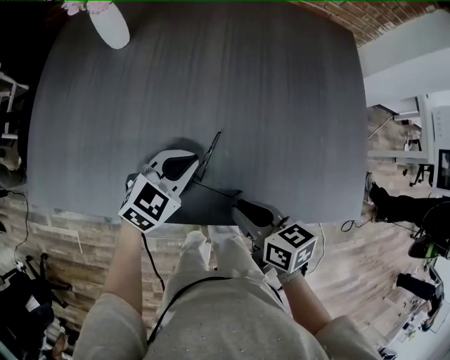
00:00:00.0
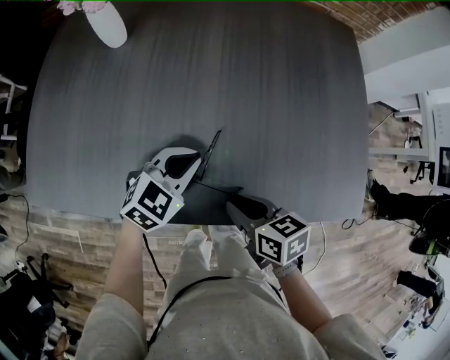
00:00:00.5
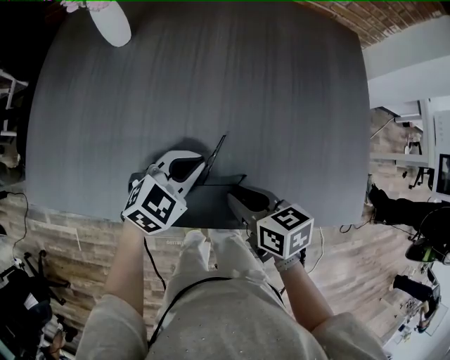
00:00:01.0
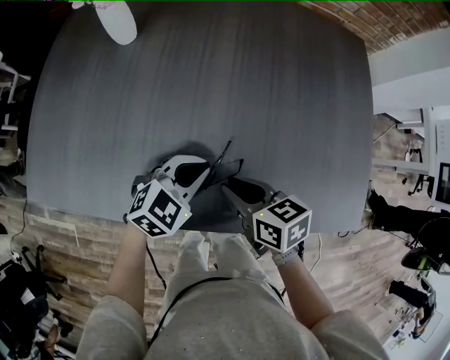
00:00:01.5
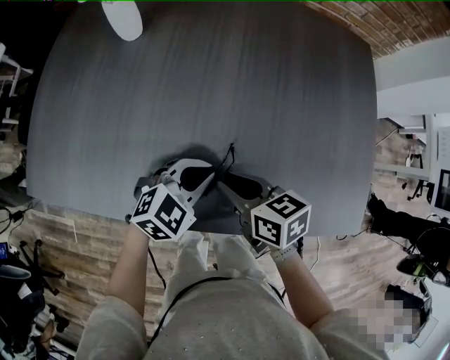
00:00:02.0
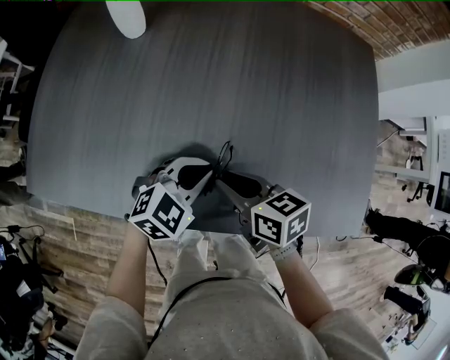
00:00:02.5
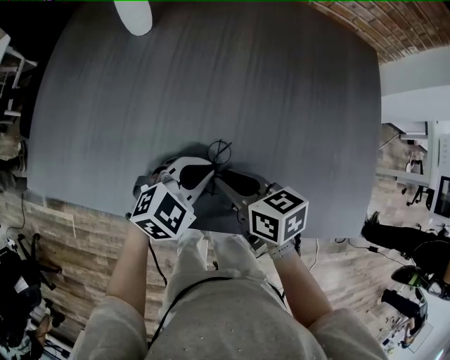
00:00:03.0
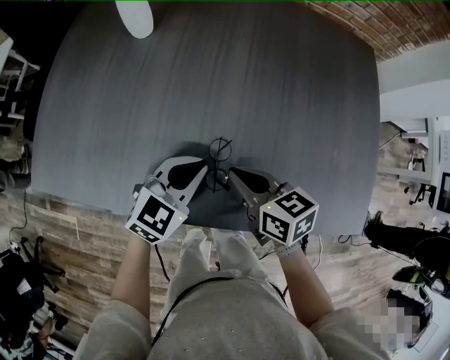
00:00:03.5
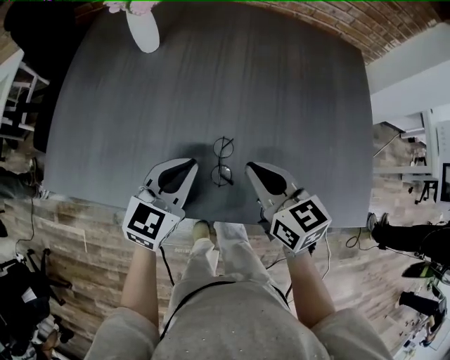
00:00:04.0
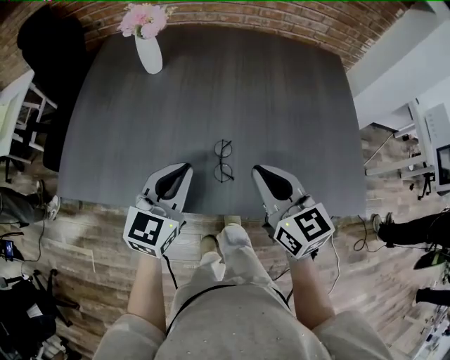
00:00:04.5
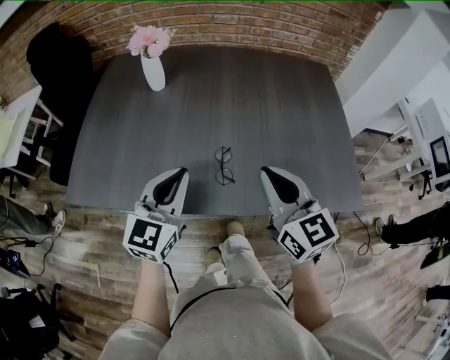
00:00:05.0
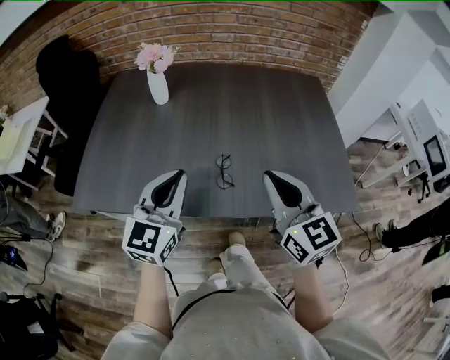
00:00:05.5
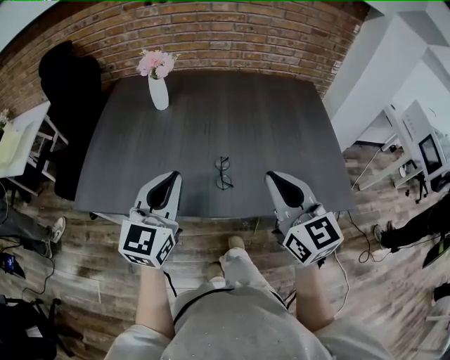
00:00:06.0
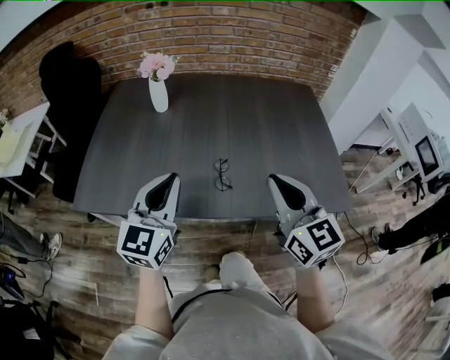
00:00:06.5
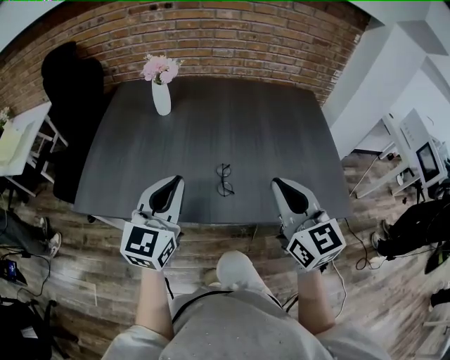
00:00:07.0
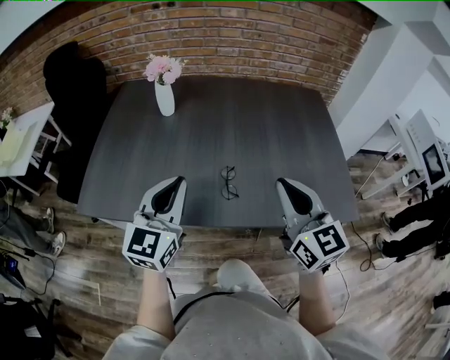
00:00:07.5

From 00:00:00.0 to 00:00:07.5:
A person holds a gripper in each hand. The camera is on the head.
From 00:00:00.0 to 00:00:02.0: The right gripper heads forward and to the left, covering roughly 10 cm.
From 00:00:02.0 to 00:00:04.0: The right gripper moves upward, approximately 10 cm, swivels some 30 degrees, and closes, while the left gripper travels upward and to the left by some 10 cm, and changes its angle by approximately 30 degrees.
From 00:00:04.0 to 00:00:05.5: Both grippers travel together upward and backward, about 20 cm. The right gripper changes its angle by approximately 30 degrees.
From 00:00:05.5 to 00:00:07.5: The grippers move only a little.

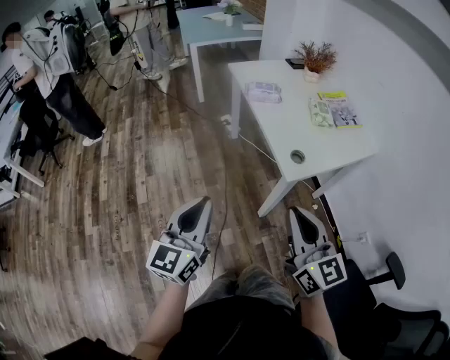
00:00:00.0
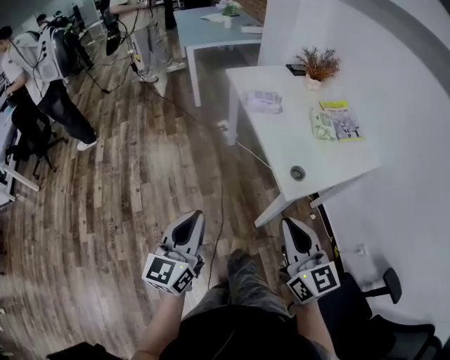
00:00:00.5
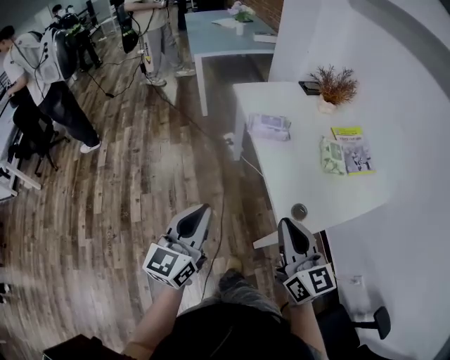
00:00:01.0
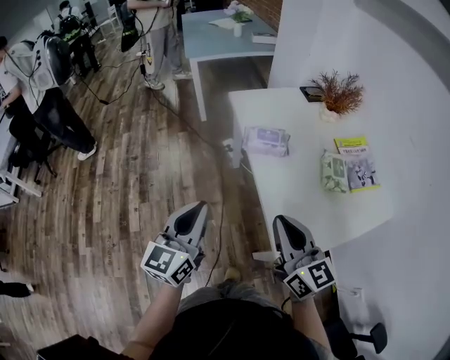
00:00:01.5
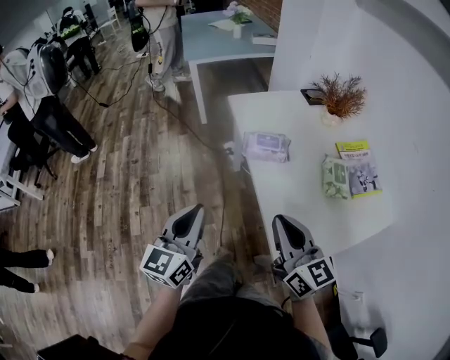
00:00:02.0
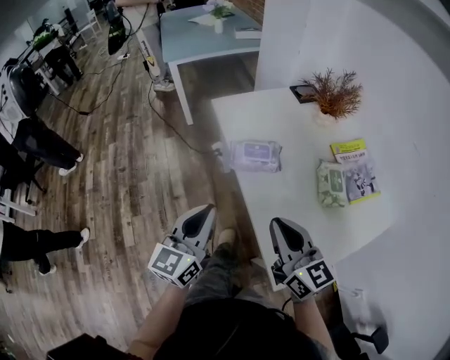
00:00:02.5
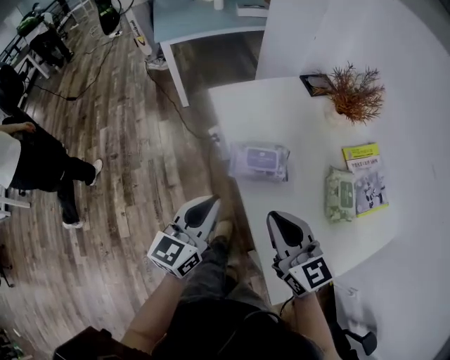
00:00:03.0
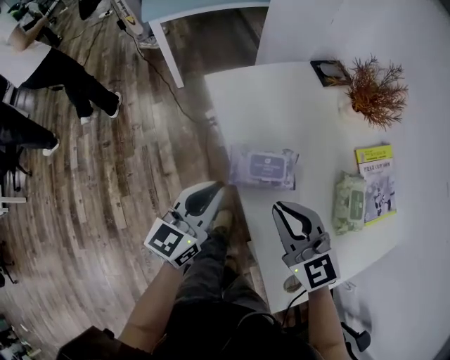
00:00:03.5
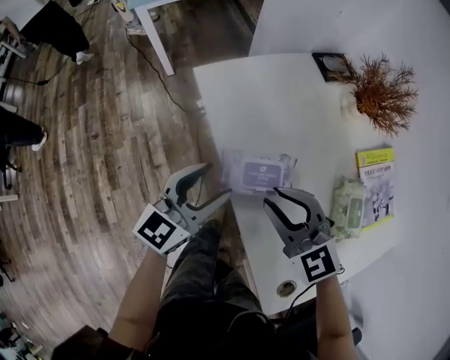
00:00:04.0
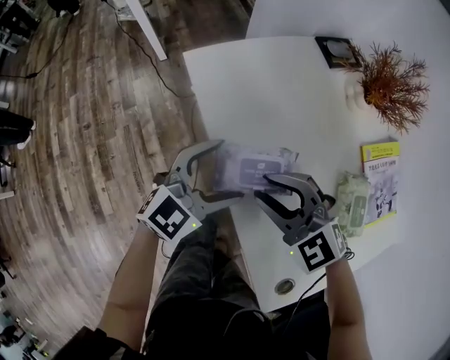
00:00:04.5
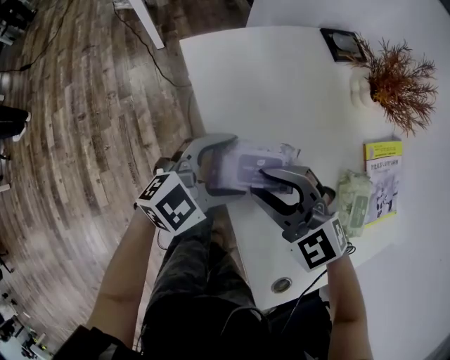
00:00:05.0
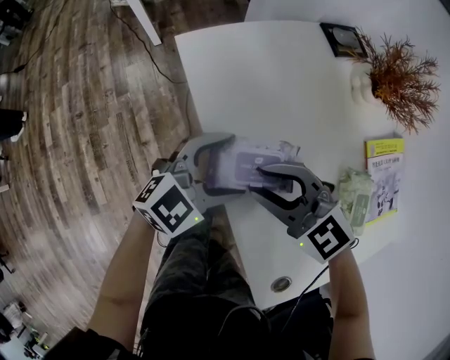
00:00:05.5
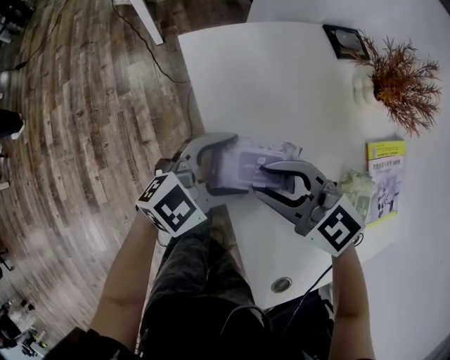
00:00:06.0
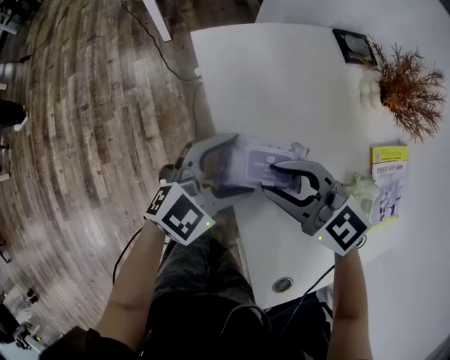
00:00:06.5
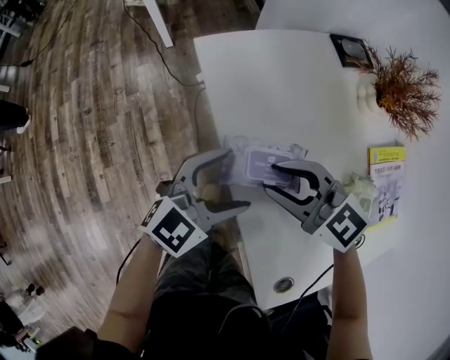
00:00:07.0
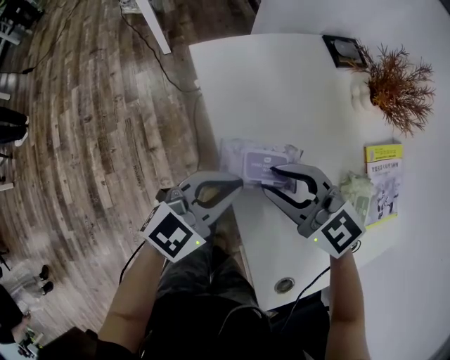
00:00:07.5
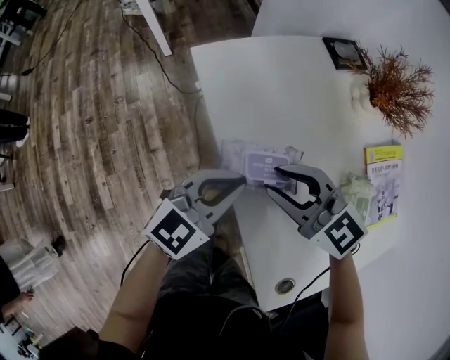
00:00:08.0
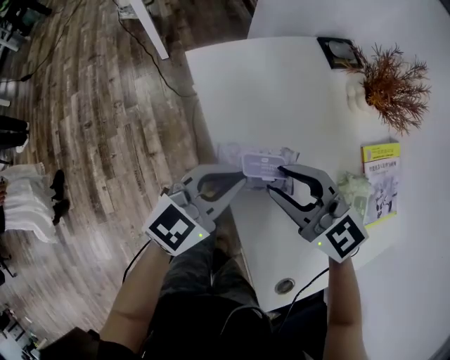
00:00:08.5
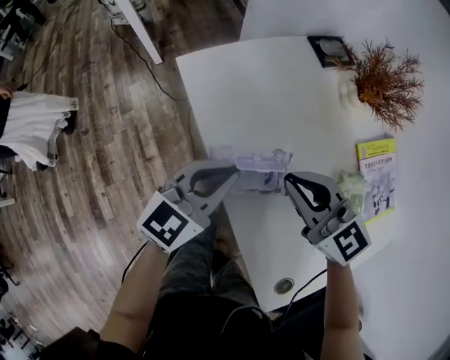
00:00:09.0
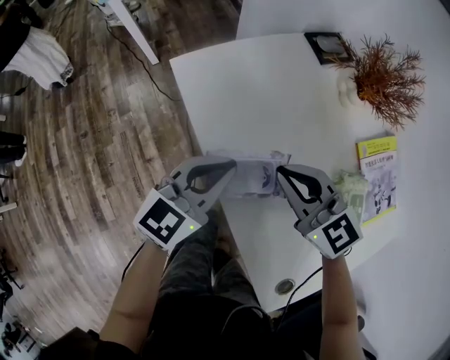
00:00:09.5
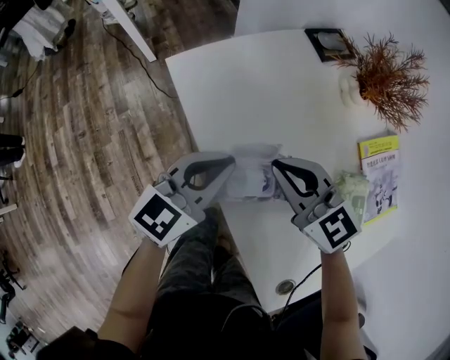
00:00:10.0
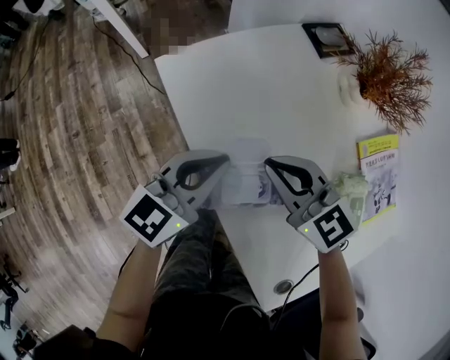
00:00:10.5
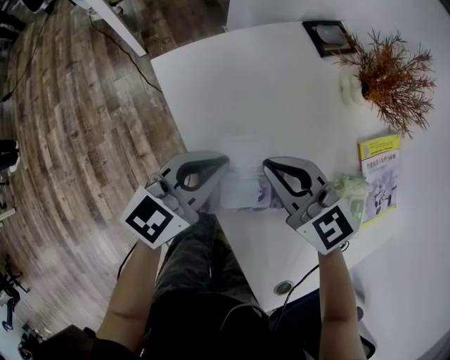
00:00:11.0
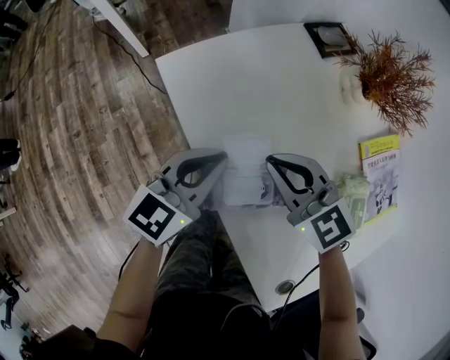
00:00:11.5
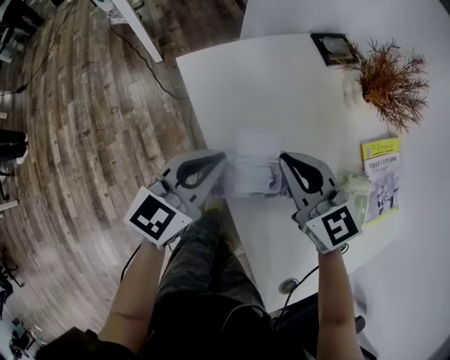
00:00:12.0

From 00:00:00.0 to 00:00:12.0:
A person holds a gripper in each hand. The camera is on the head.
From 00:00:00.0 to 00:00:02.0: Both grippers travel together forward, roughly 30 cm.
From 00:00:02.0 to 00:00:04.0: The right gripper travels forward and downward by roughly 30 cm, and rotates about 50 degrees, while the left gripper heads forward, covering roughly 30 cm, turns by approximately 30 degrees, and opens up.
From 00:00:04.0 to 00:00:06.0: The left gripper shifts by about 10 cm, changes its angle by roughly 30 degrees, and opens up, while the right gripper swivels about 20 degrees.
From 00:00:06.0 to 00:00:08.0: The left gripper ends up about 5 cm from where it was, and closes.
From 00:00:08.0 to 00:00:10.0: The two grippers go roughly 5 cm forward. The right gripper closes its fingers.
From 00:00:10.0 to 00:00:12.0: The grippers make only small movements.

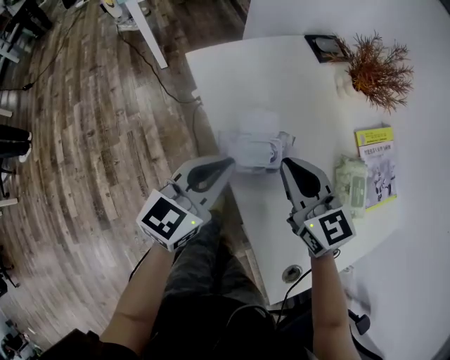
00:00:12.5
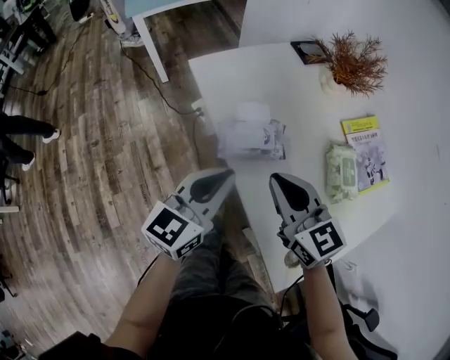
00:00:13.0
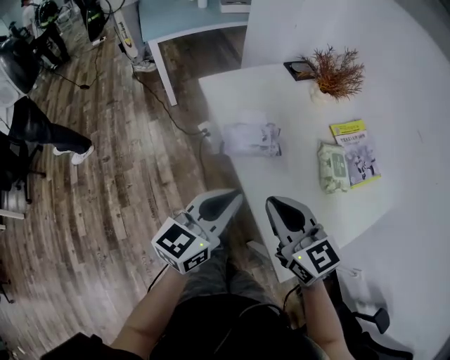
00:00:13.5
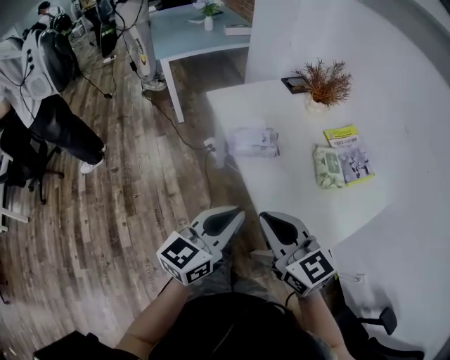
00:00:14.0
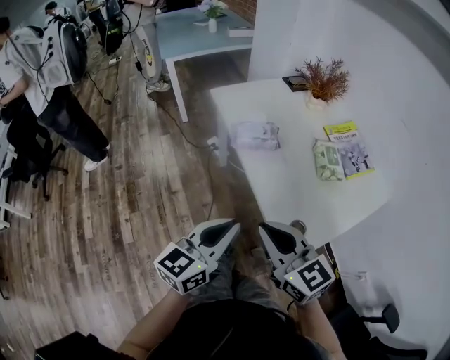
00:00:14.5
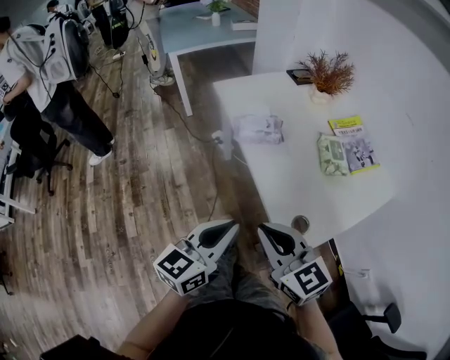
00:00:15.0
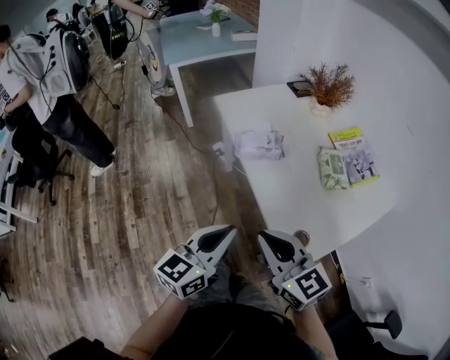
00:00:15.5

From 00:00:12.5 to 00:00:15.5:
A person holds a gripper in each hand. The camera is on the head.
From 00:00:12.5 to 00:00:14.0: The grippers both shift backward by some 25 cm.

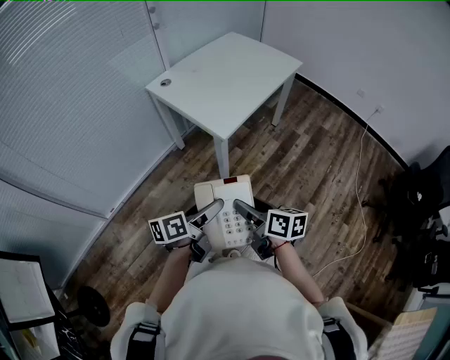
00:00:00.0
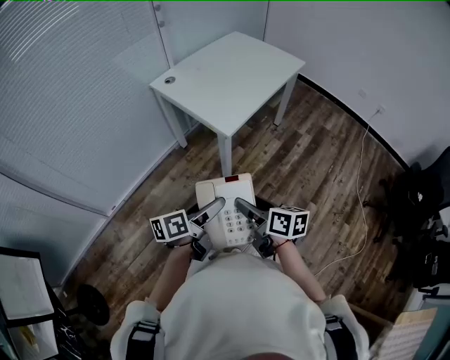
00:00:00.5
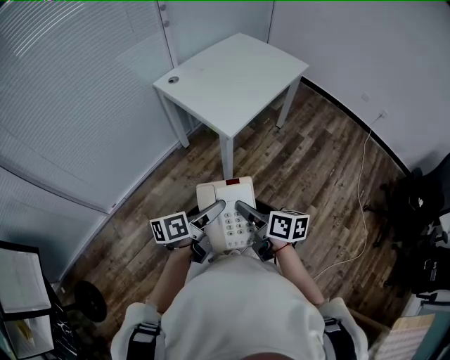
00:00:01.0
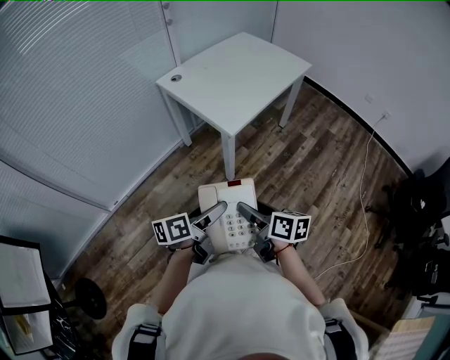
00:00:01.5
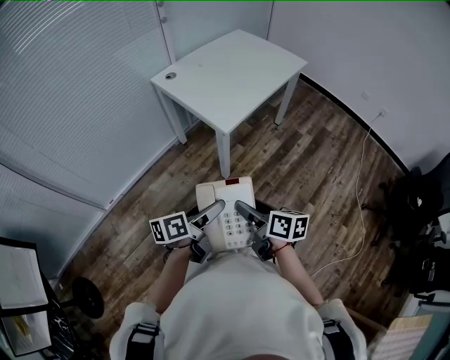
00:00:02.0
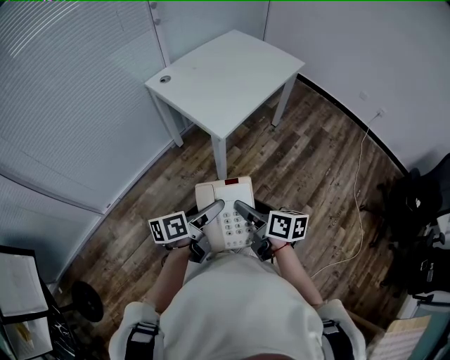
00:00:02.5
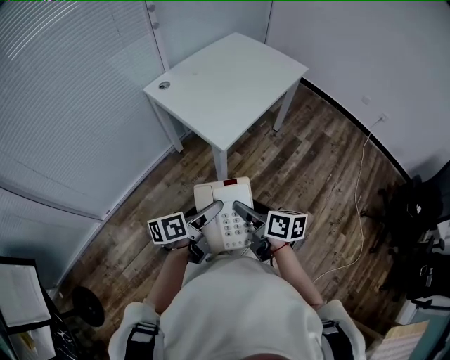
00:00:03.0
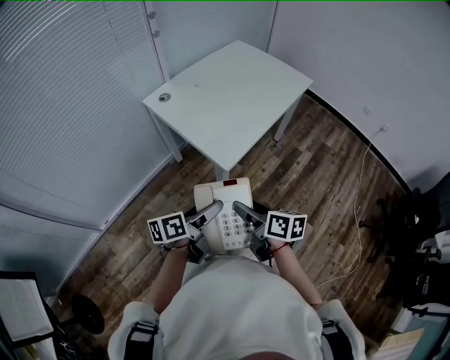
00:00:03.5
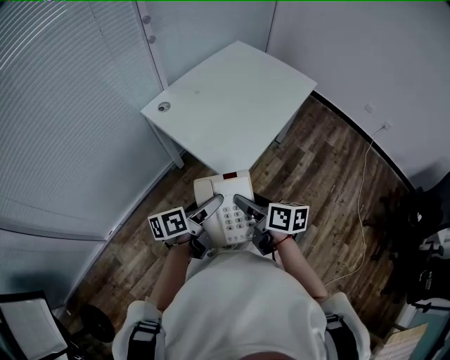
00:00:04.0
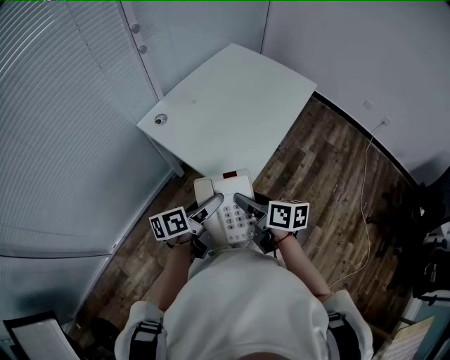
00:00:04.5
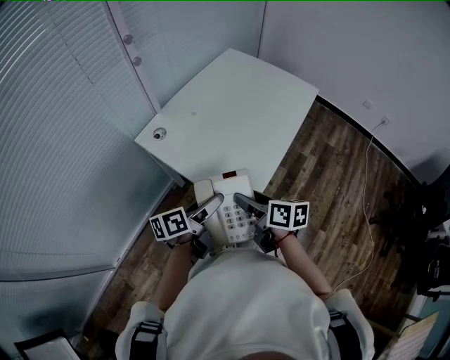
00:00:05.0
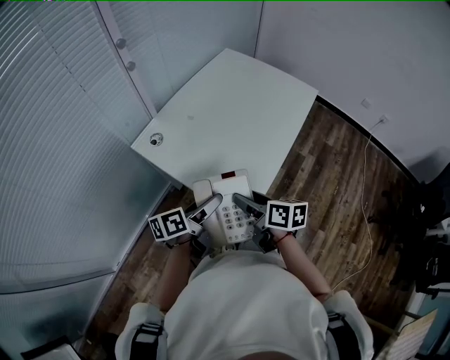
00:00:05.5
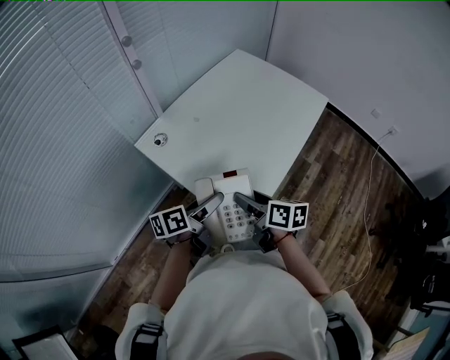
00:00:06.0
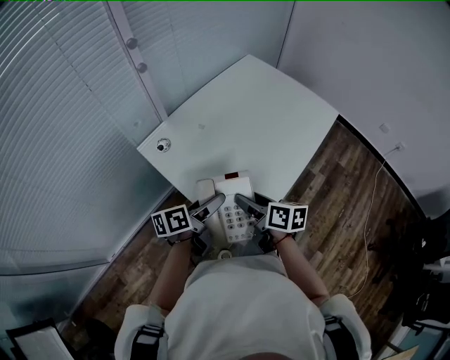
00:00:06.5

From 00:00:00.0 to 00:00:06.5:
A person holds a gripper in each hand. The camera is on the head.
From 00:00:00.0 to 00:00:02.0: The grippers make only small movements.
From 00:00:02.0 to 00:00:04.5: Both grippers travel together forward, approximately 35 cm.
From 00:00:04.5 to 00:00:06.5: Both grippers move forward, approximately 20 cm.
